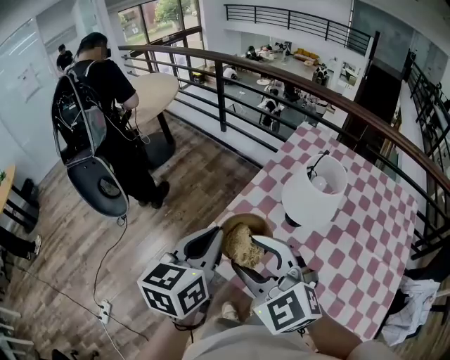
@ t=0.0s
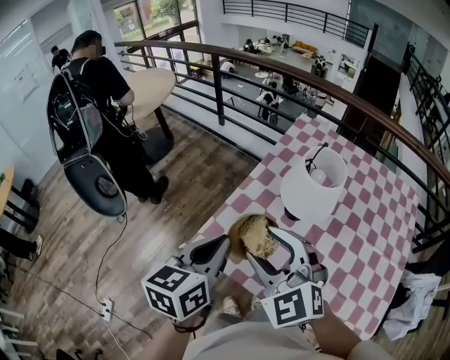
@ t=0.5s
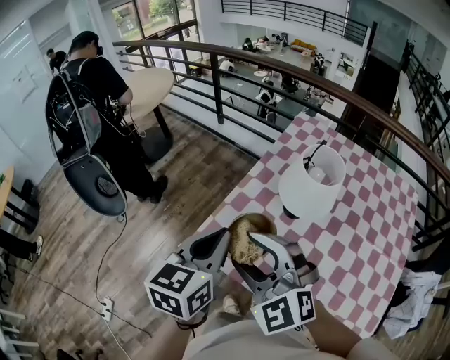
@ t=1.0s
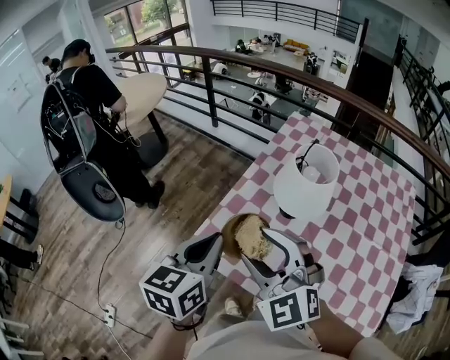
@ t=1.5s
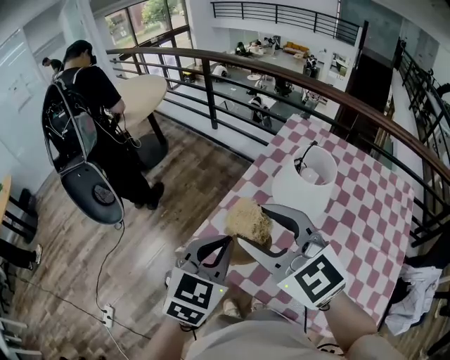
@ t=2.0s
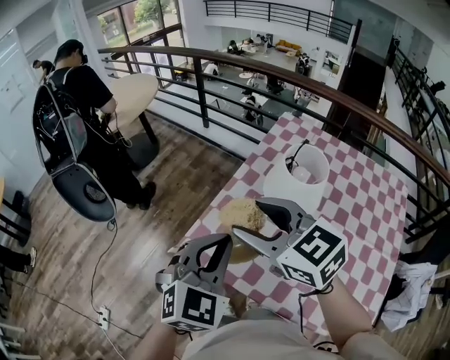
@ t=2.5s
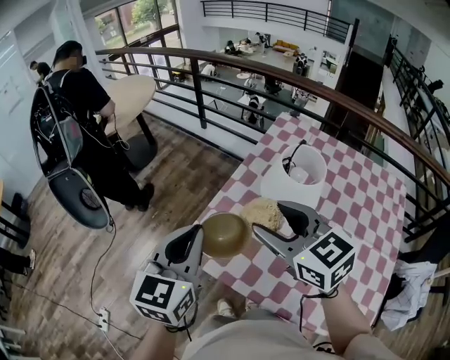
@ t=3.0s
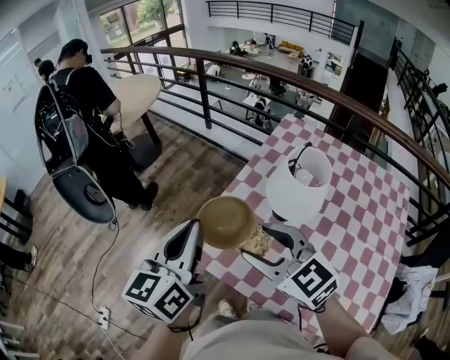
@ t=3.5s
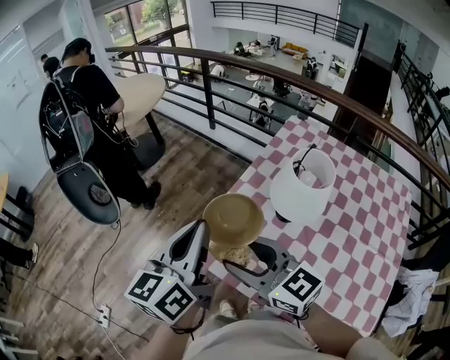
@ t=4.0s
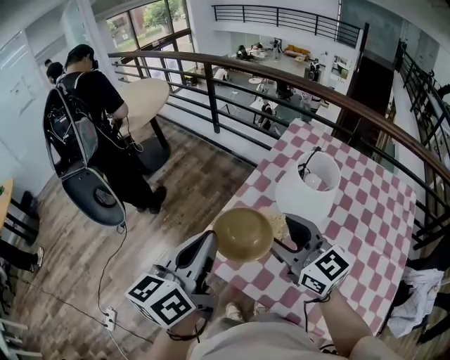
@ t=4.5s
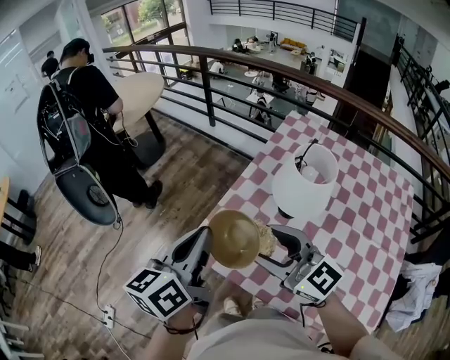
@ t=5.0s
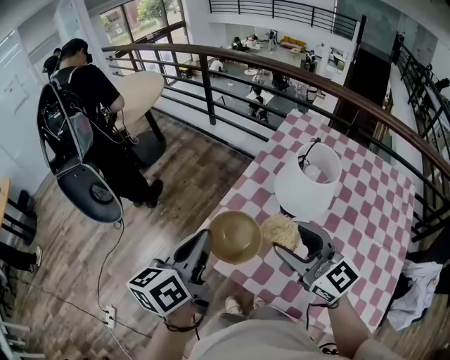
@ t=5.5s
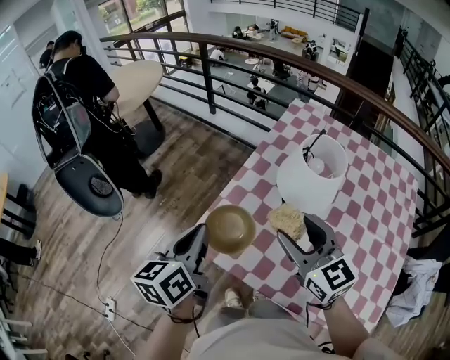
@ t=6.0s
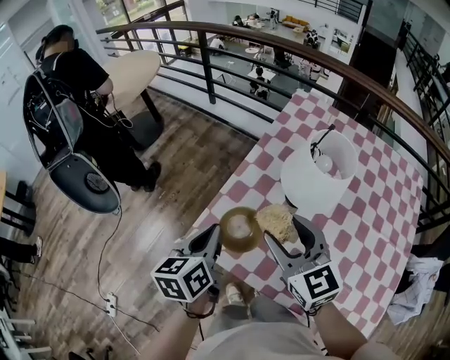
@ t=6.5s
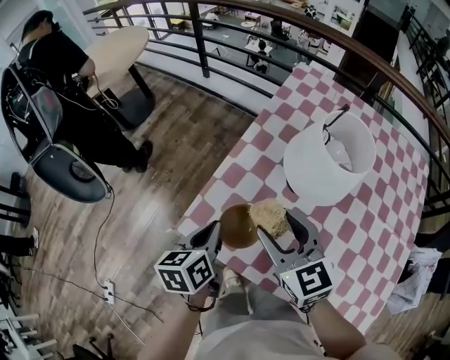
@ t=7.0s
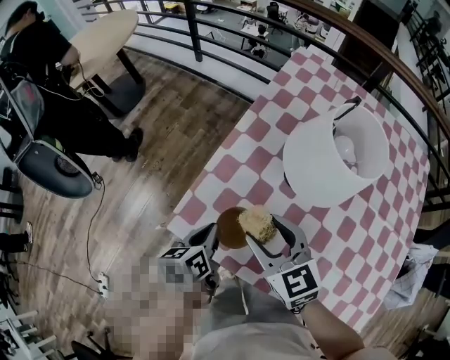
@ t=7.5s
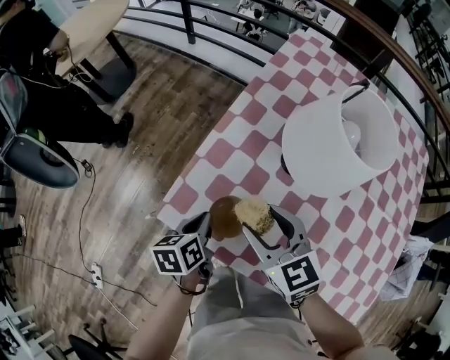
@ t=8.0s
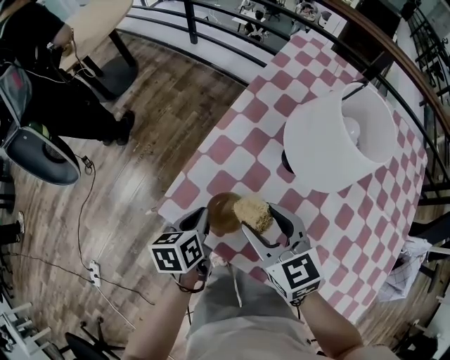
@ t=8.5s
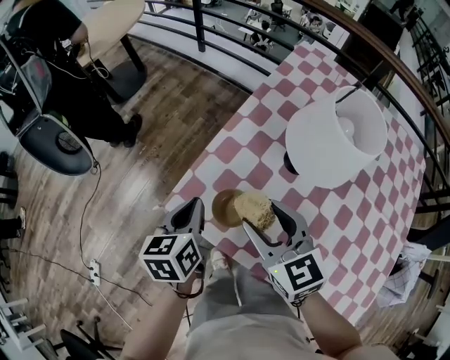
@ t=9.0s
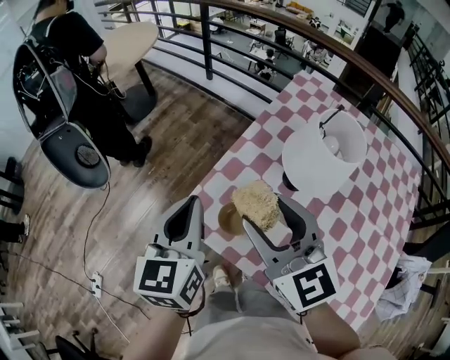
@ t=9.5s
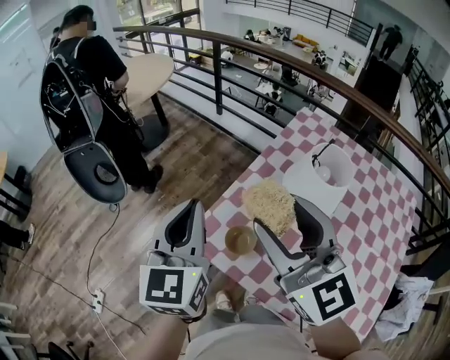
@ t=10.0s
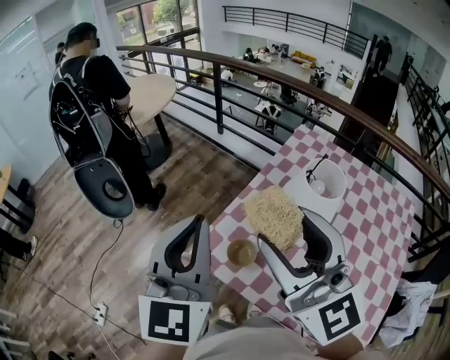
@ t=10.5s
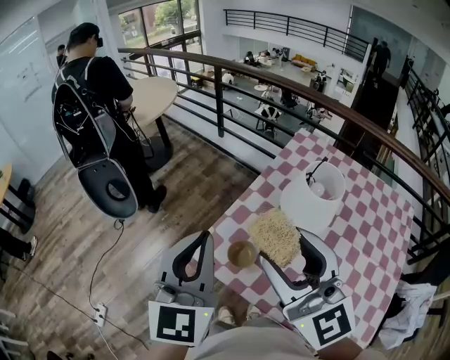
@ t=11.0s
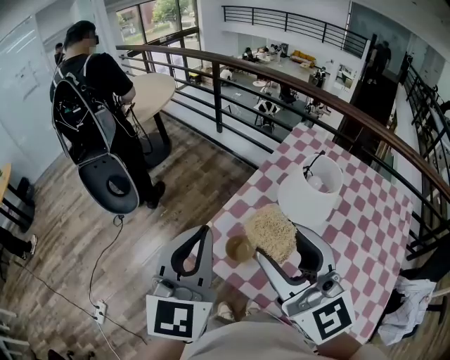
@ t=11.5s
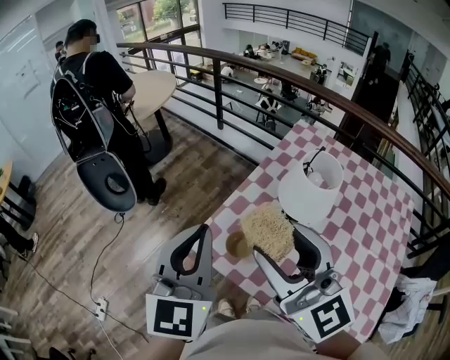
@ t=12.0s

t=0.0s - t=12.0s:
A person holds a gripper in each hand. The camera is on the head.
t=0.0s - t=2.0s: The left gripper travels to the right by approximately 5 cm, and swivels about 30 degrees. The right gripper heads upward, covering roughly 5 cm.
t=2.0s - t=4.0s: The left gripper goes roughly 10 cm upward and to the left, and turns by roughly 50 degrees, while the right gripper heads downward, covering some 10 cm, travels to the right and back again, about 5 cm each way, and turns by roughly 20 degrees.
t=4.0s - t=6.0s: The left gripper heads downward, covering some 10 cm. The right gripper goes about 10 cm to the right, and turns by roughly 20 degrees.
t=6.0s - t=8.0s: The left gripper moves downward, about 30 cm, and swivels roughly 30 degrees. Meanwhile the right gripper travels downward by some 20 cm, and changes its angle by approximately 20 degrees.
t=8.0s - t=10.0s: Both grippers move upward, about 35 cm. The right gripper tips its fingers upward by some 30 degrees. Meanwhile the left gripper tips its fingers upward by some 40 degrees.
t=10.0s - t=12.0s: The two grippers go roughly 5 cm backward.

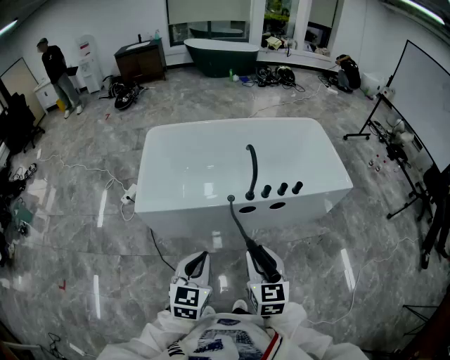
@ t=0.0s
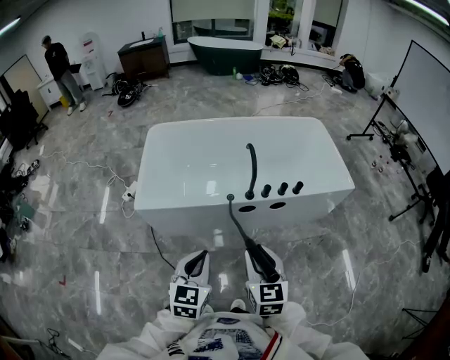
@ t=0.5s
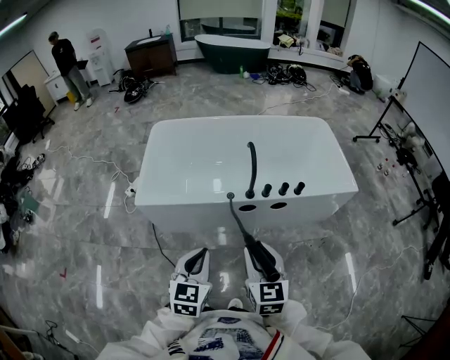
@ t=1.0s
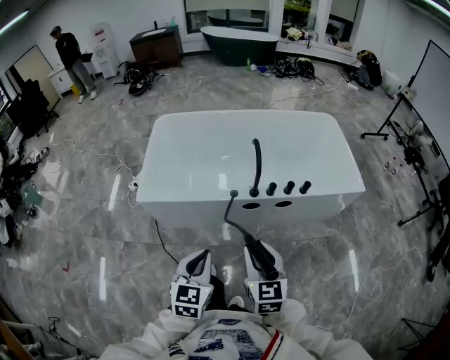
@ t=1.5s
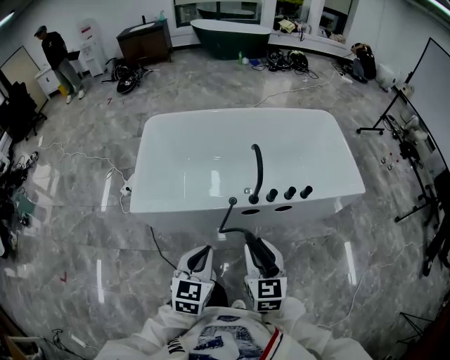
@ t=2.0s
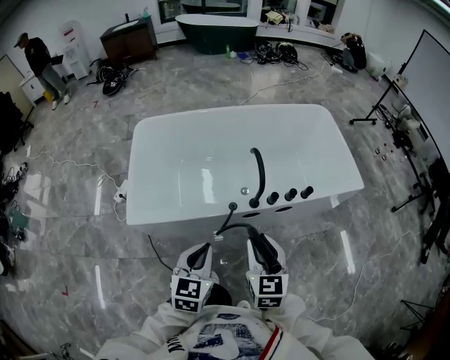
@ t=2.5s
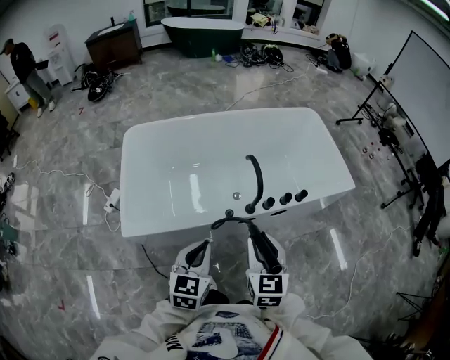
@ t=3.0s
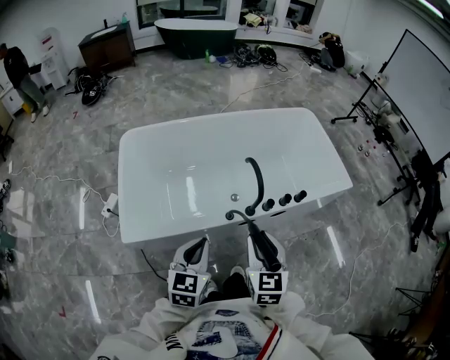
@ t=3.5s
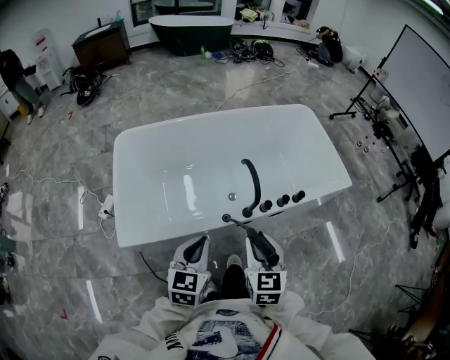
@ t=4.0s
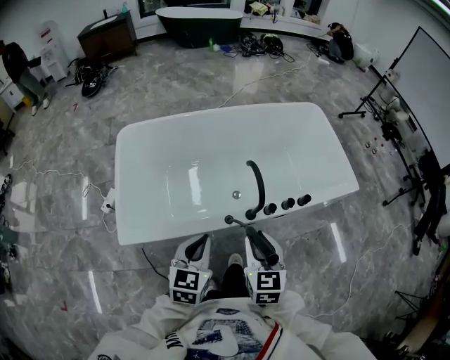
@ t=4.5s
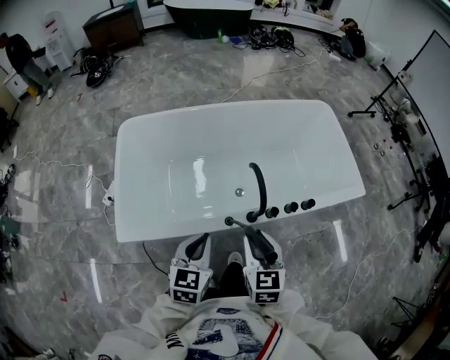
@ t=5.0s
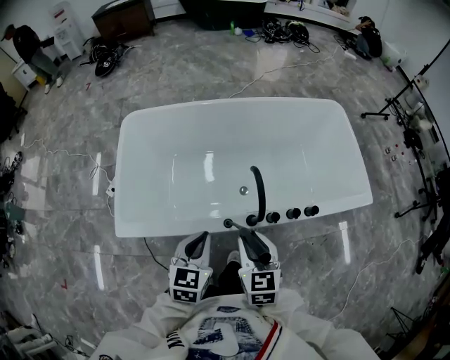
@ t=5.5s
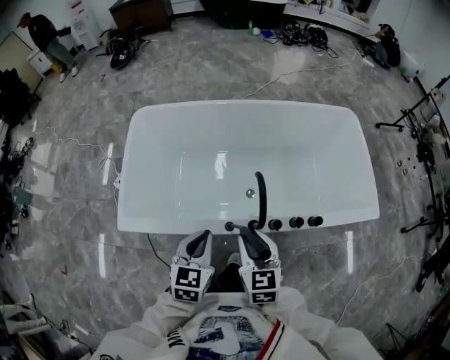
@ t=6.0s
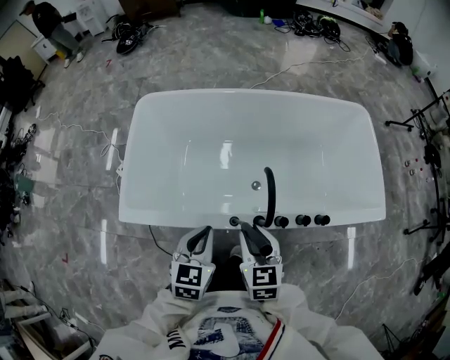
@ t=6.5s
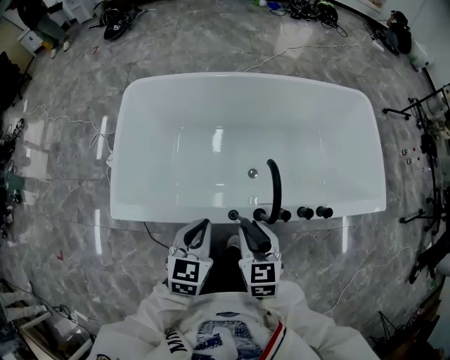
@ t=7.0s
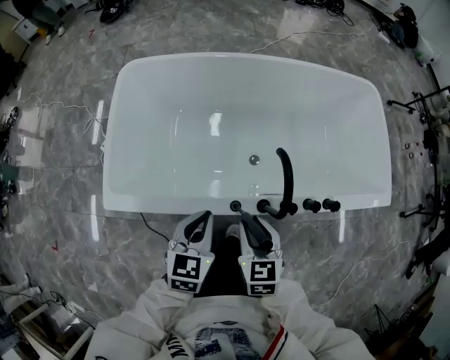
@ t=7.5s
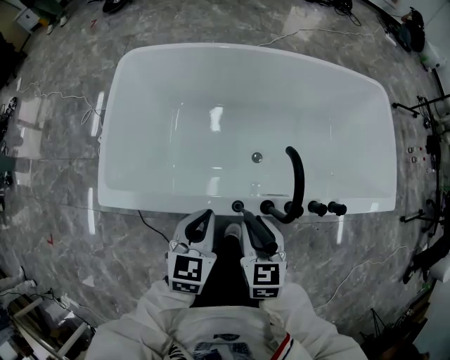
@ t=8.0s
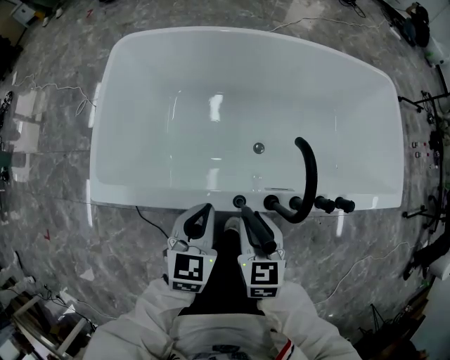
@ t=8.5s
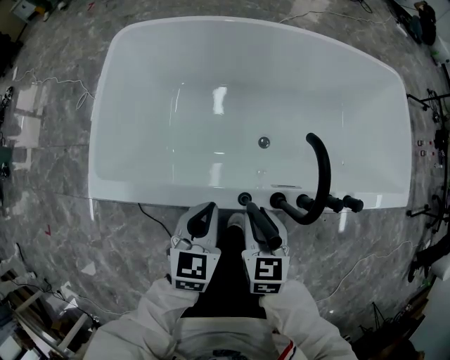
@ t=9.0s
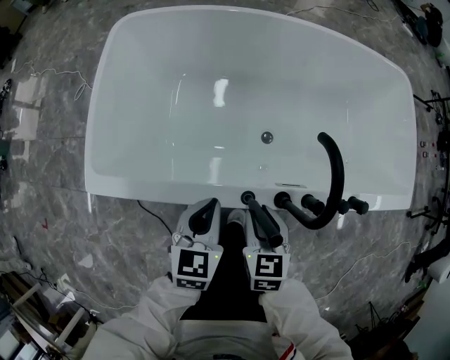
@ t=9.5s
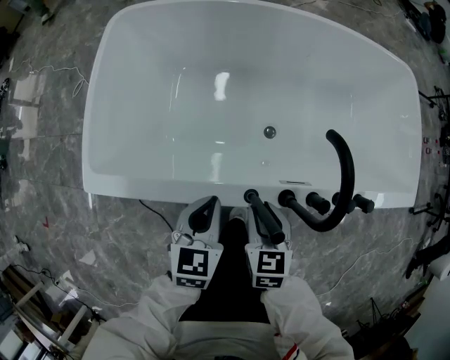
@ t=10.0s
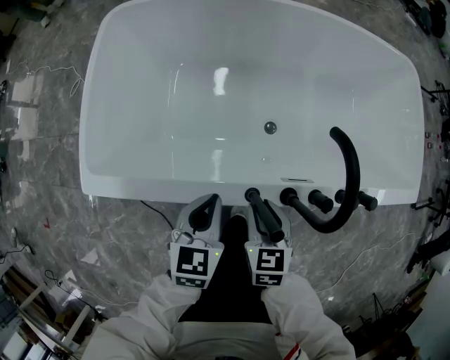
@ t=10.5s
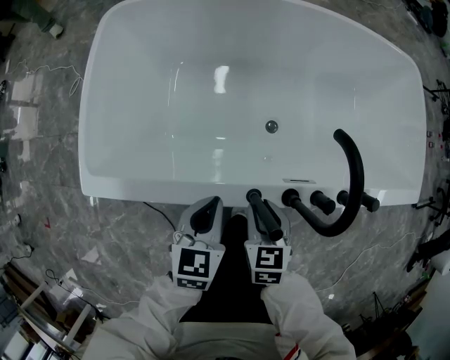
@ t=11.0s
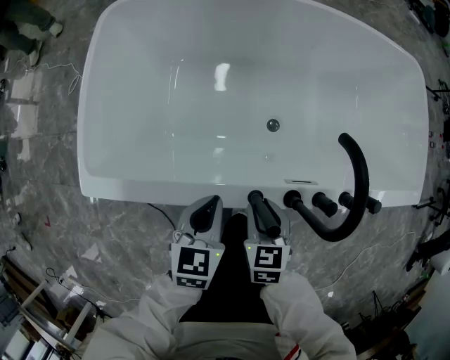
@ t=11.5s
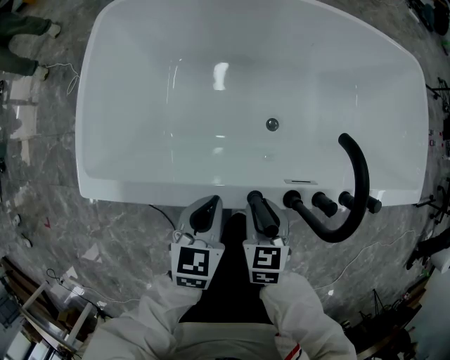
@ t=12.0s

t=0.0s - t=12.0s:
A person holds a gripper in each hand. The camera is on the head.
t=0.0s - t=2.0s: Both grippers travel together forward, some 10 cm.
t=2.0s - t=4.0s: The right gripper travels forward by about 10 cm. Meanwhile the left gripper heads forward and to the left, covering approximately 15 cm.
t=4.0s - t=6.0s: The right gripper shifts about 15 cm forward and downward, and changes its angle by about 20 degrees; the left gripper moves forward, approximately 10 cm.
t=6.0s - t=8.0s: Both grippers move downward, approximately 10 cm.
t=8.0s - t=10.0s: The two grippers go roughly 10 cm downward.
t=10.0s - t=12.0s: The grippers move only a little.

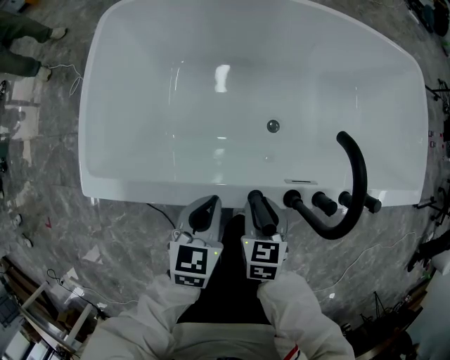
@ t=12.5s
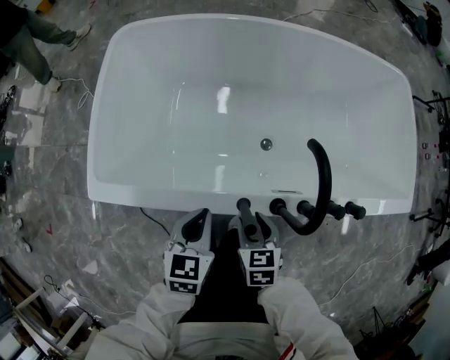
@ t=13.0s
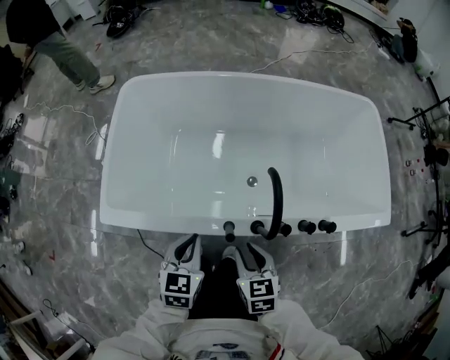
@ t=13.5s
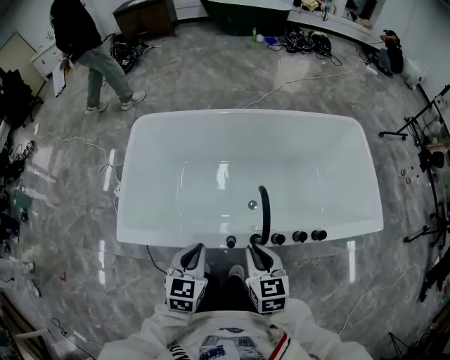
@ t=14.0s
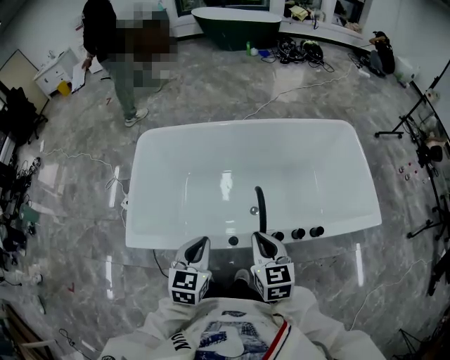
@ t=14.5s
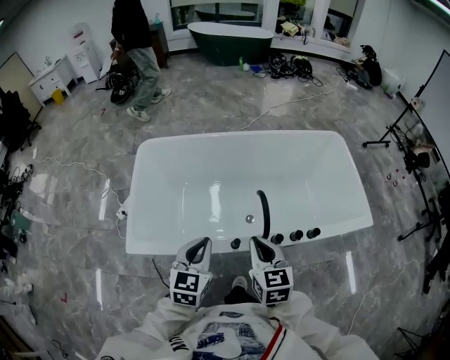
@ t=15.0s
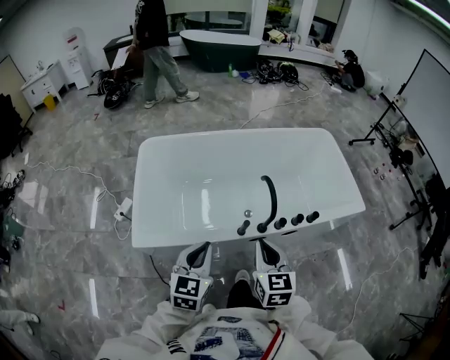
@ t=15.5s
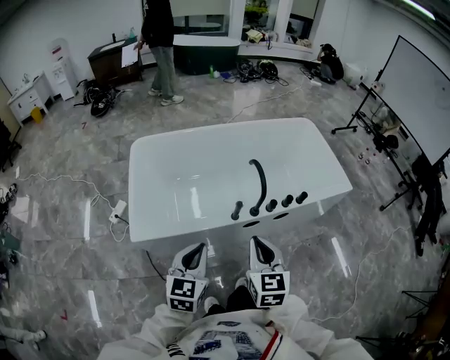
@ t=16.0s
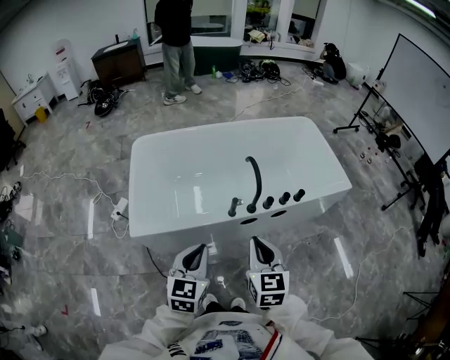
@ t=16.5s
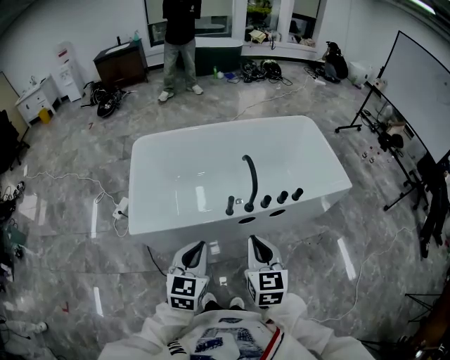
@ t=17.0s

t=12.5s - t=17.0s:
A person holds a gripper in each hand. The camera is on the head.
t=12.5s - t=14.5s: The grippers both shift upward by approximately 30 cm. The right gripper swivels approximately 30 degrees, and closes.
t=14.5s - t=17.0s: The two grippers go approximately 25 cm backward.
